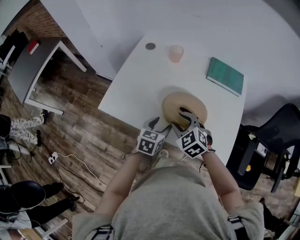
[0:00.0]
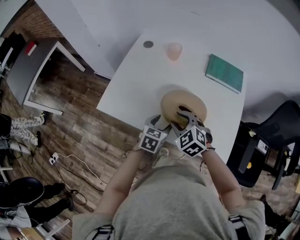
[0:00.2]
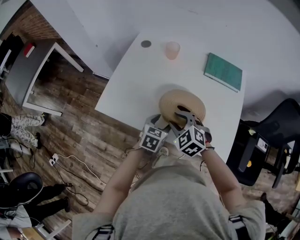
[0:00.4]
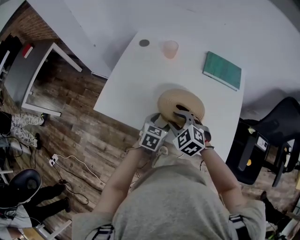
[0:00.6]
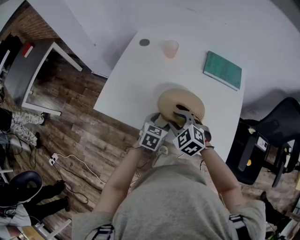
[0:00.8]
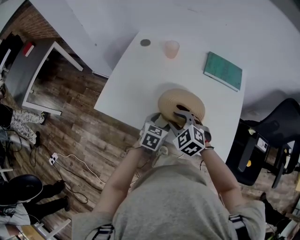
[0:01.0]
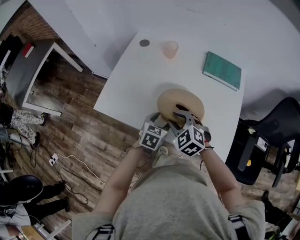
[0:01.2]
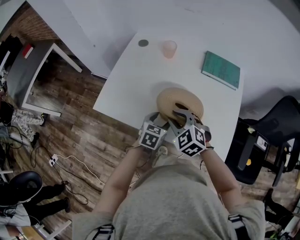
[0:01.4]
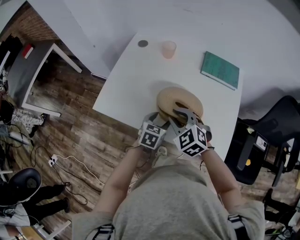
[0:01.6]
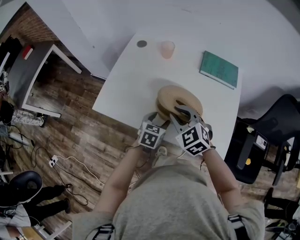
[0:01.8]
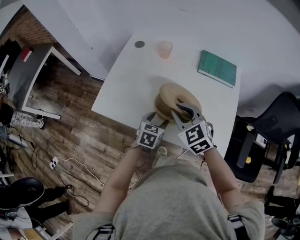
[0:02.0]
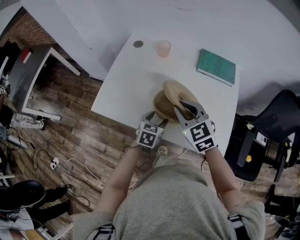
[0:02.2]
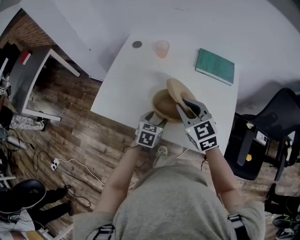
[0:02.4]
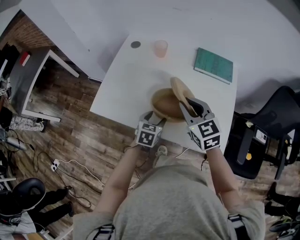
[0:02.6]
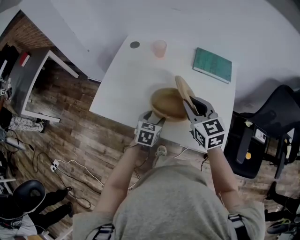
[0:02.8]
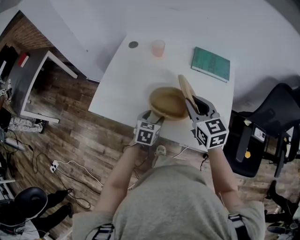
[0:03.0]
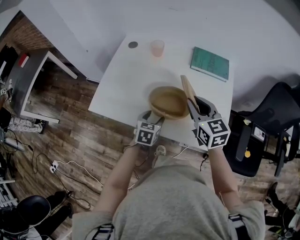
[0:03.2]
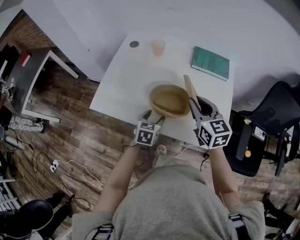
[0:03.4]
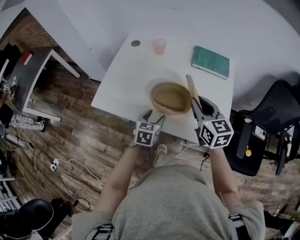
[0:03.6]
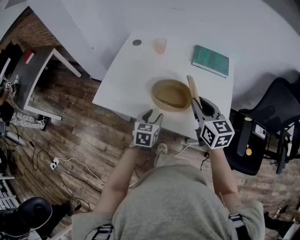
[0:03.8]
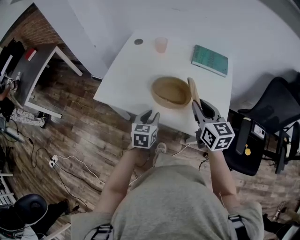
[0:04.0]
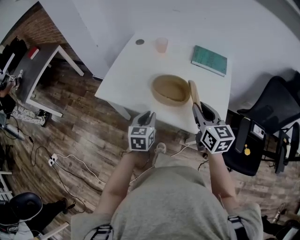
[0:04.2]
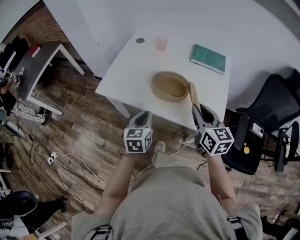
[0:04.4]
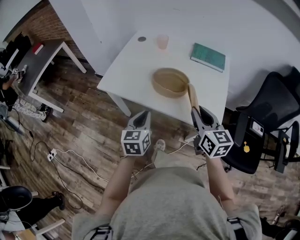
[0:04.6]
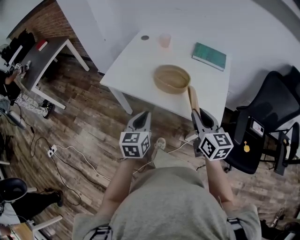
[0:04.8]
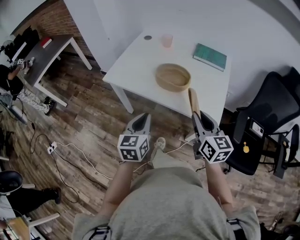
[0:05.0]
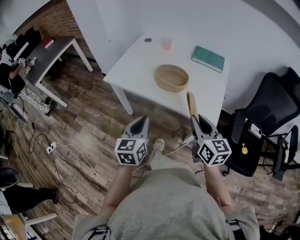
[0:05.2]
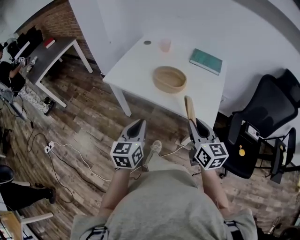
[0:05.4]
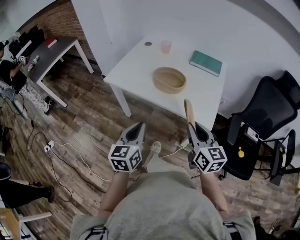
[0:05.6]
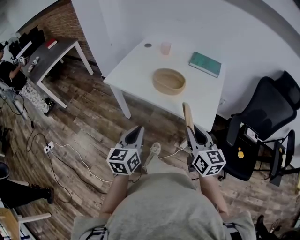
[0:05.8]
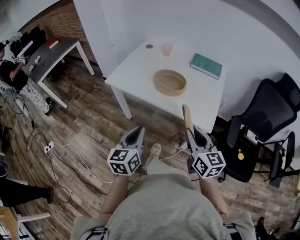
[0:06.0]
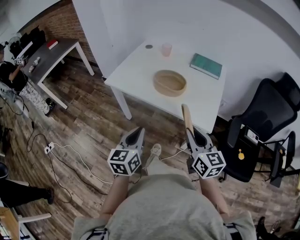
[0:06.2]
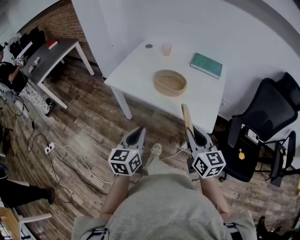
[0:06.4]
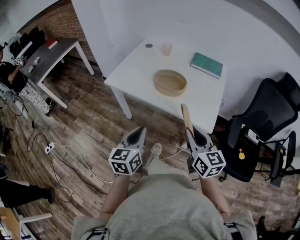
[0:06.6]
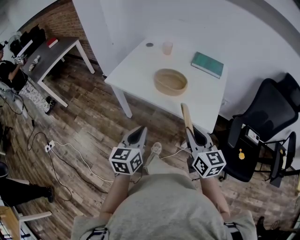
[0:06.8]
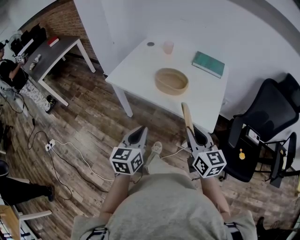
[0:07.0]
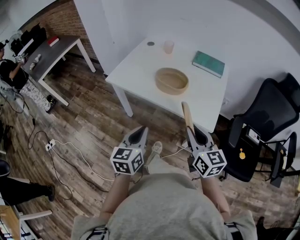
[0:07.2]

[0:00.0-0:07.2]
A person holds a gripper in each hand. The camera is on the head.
0:00.0 to 0:01.4: The grippers stay close to where they were, moving slightly.
0:01.4 to 0:02.8: The right gripper is displaced to the right and upward by about 15 cm, and turns by some 40 degrees.
0:02.8 to 0:04.4: The right gripper moves backward, some 15 cm. Meanwhile the left gripper heads backward and upward, covering some 15 cm, rotates approximately 20 degrees, and closes up.
0:04.4 to 0:05.8: The two grippers go approximately 20 cm backward.
0:05.8 to 0:07.2: Both grippers stay put.

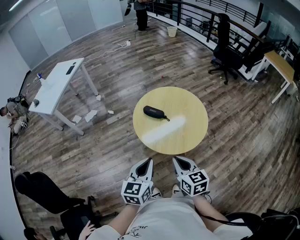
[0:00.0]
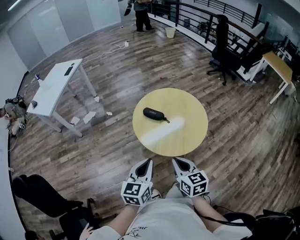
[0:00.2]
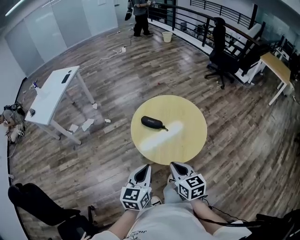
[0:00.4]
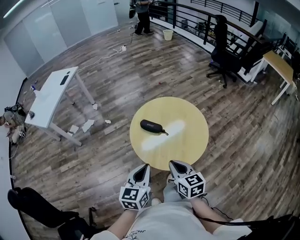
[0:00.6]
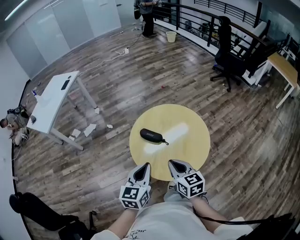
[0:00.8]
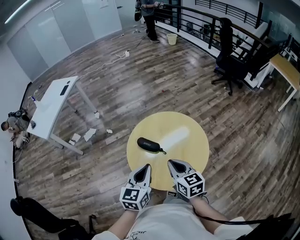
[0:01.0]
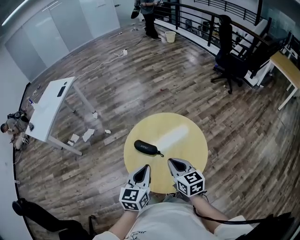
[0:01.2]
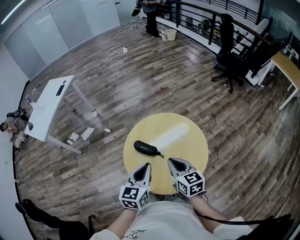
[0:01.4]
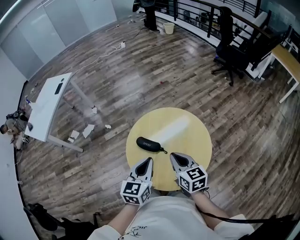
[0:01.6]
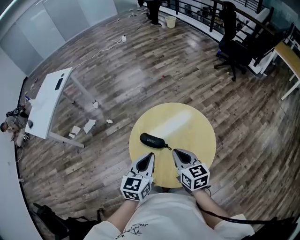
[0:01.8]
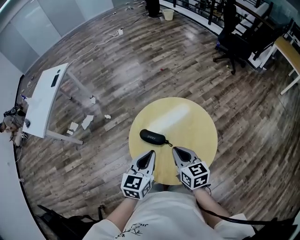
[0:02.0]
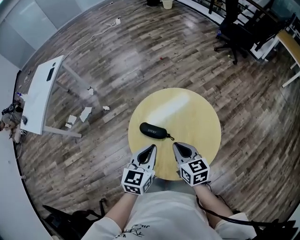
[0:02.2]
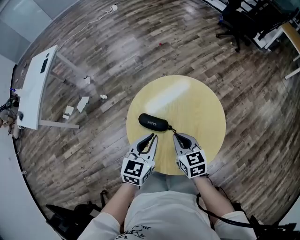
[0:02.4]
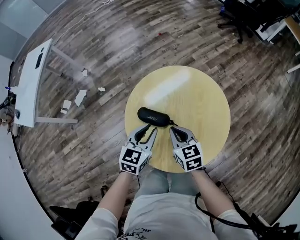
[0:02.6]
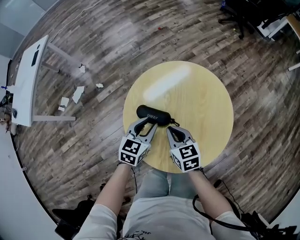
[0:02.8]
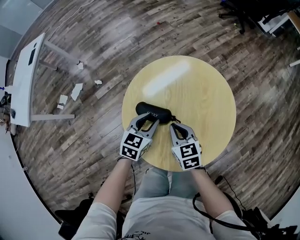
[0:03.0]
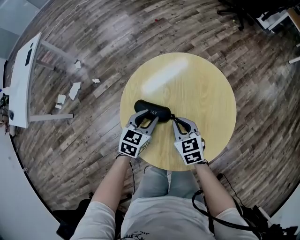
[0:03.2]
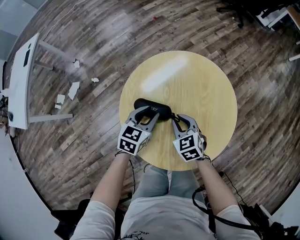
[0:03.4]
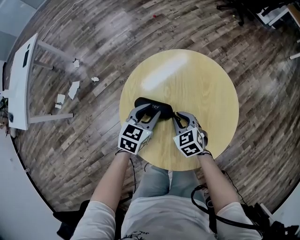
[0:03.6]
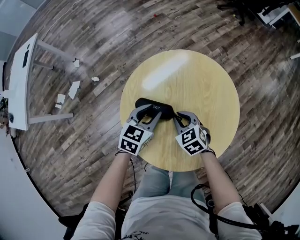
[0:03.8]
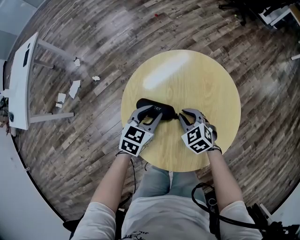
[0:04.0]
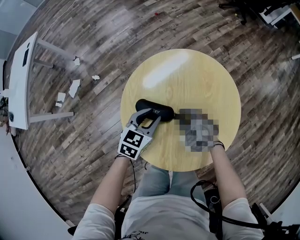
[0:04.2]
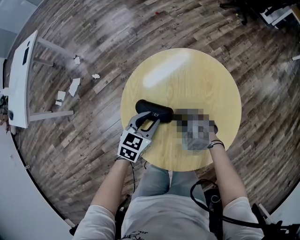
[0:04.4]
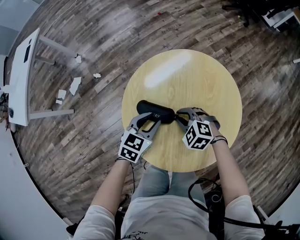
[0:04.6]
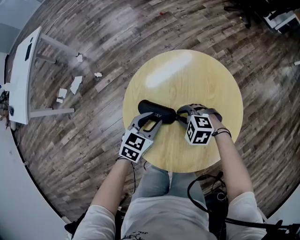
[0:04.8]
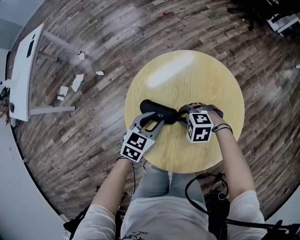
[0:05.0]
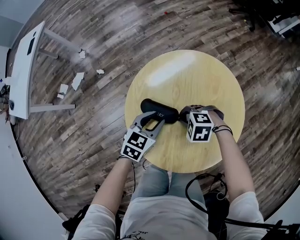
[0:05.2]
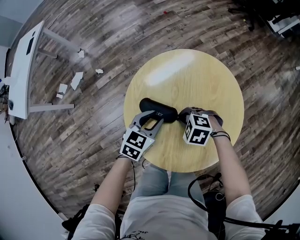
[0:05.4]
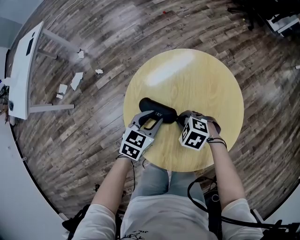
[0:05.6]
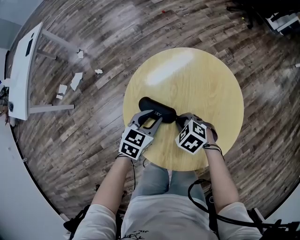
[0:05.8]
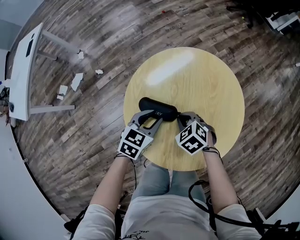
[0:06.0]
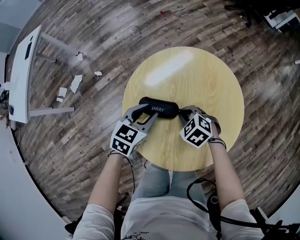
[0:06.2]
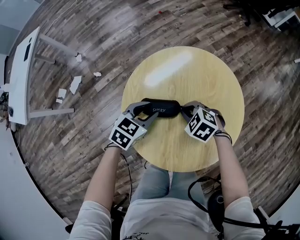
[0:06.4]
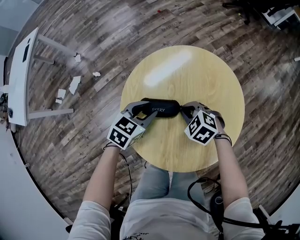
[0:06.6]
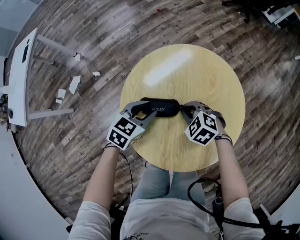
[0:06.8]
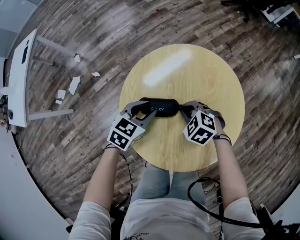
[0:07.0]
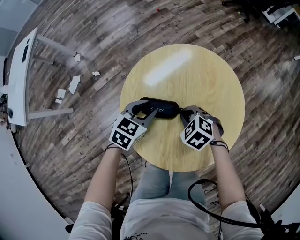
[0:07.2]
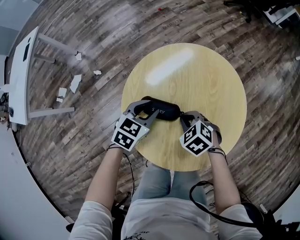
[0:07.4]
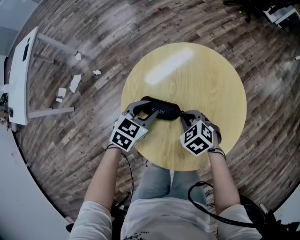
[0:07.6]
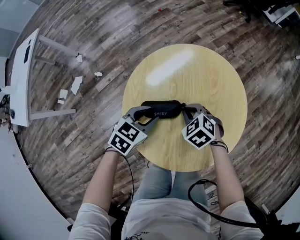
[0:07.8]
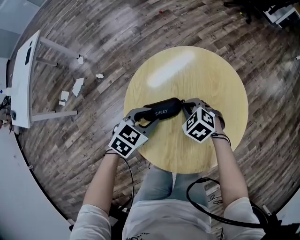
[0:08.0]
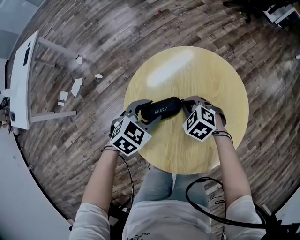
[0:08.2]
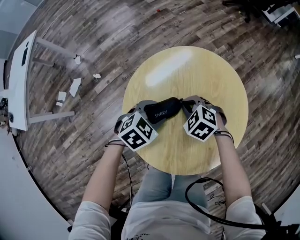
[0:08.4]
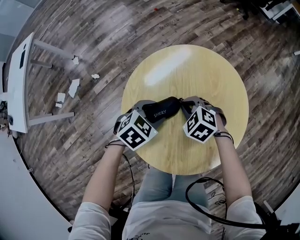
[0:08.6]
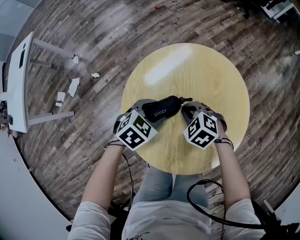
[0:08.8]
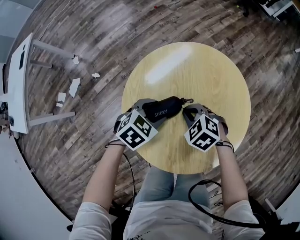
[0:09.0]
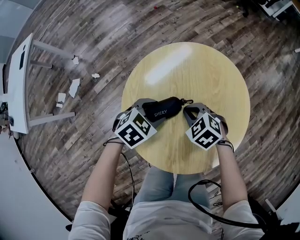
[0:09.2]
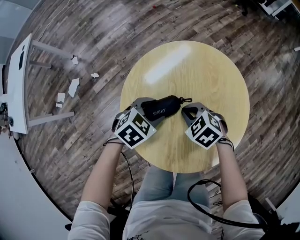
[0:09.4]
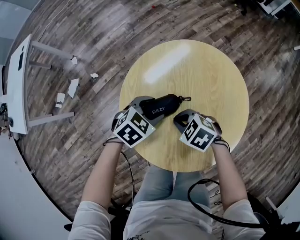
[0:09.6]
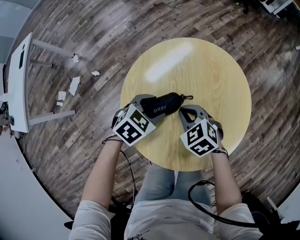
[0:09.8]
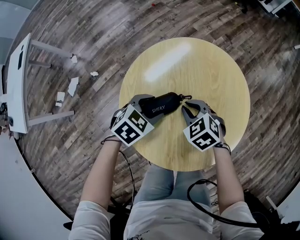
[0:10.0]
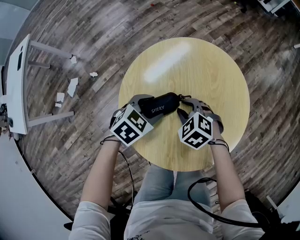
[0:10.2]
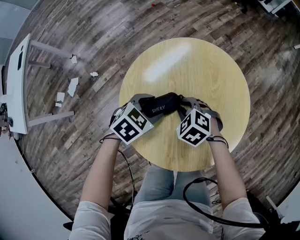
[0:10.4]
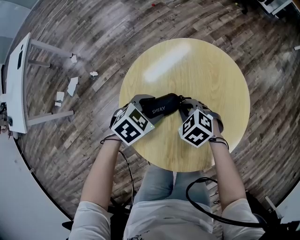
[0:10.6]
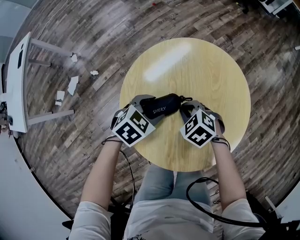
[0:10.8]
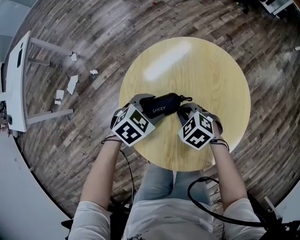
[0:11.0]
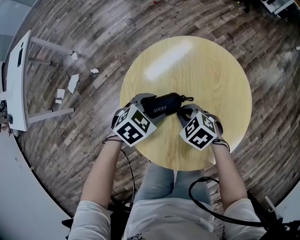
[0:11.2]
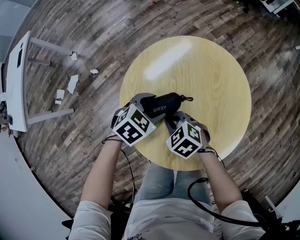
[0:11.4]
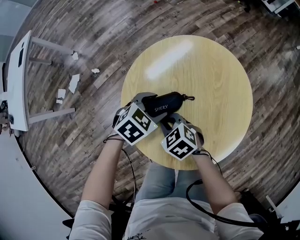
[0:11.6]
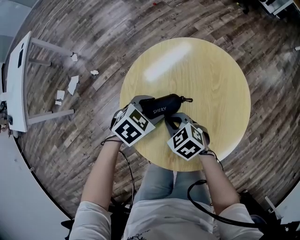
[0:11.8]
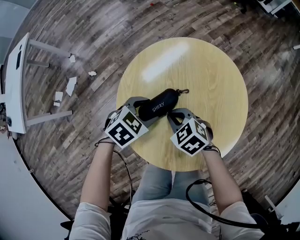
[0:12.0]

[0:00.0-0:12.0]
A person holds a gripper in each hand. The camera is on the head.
0:00.0 to 0:01.6: The grippers both shift forward by about 25 cm.
0:01.6 to 0:03.0: The right gripper goes about 20 cm downward. Meanwhile the left gripper is displaced downward and forward by roughly 25 cm, turns by some 30 degrees, and opens up.
0:03.0 to 0:04.4: The right gripper is displaced downward by about 5 cm, and rolls counterclockwise, seen from behind, by approximately 40 degrees.
0:06.0 to 0:07.6: The grippers stay close to where they were, moving slightly.
0:07.6 to 0:09.0: The left gripper opens its fingers.
0:09.0 to 0:10.4: The grippers make only small movements.

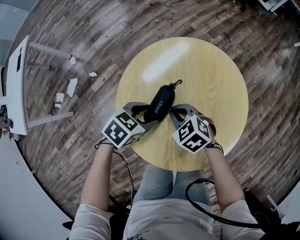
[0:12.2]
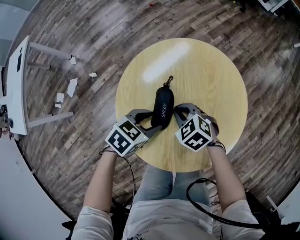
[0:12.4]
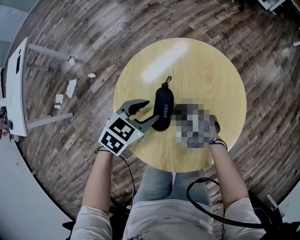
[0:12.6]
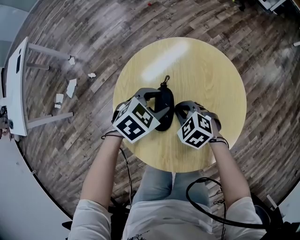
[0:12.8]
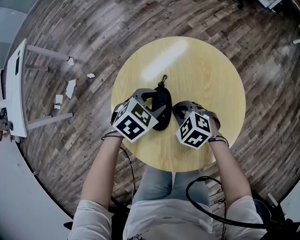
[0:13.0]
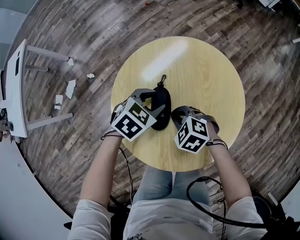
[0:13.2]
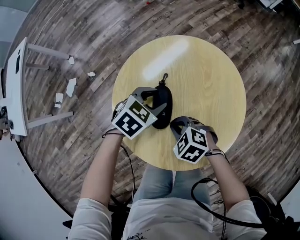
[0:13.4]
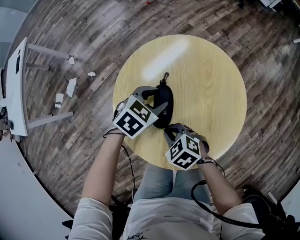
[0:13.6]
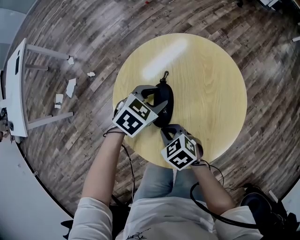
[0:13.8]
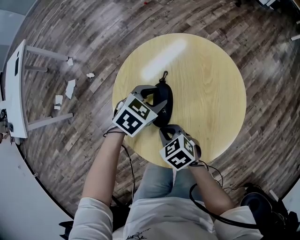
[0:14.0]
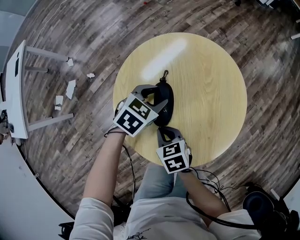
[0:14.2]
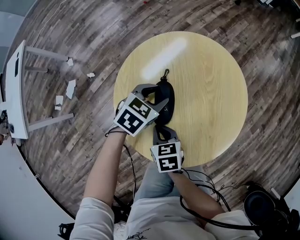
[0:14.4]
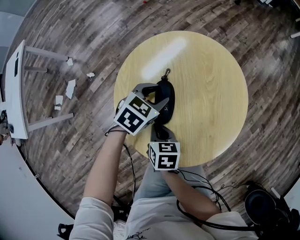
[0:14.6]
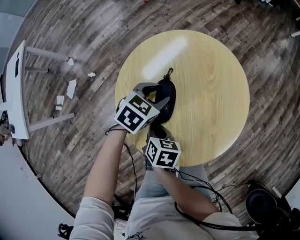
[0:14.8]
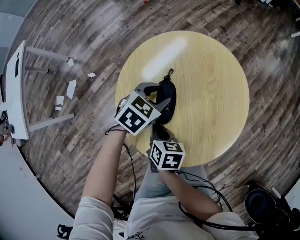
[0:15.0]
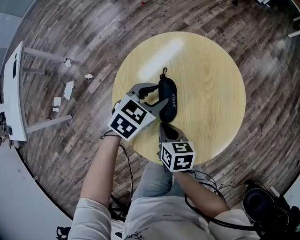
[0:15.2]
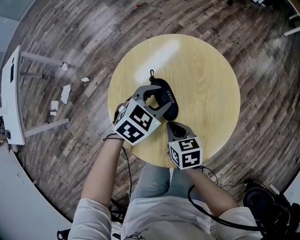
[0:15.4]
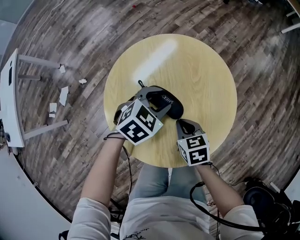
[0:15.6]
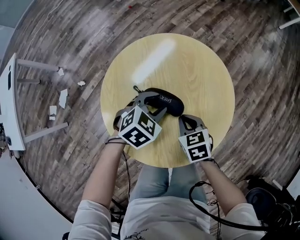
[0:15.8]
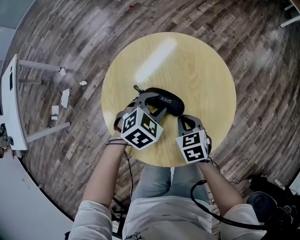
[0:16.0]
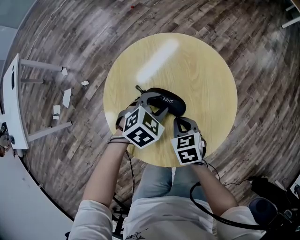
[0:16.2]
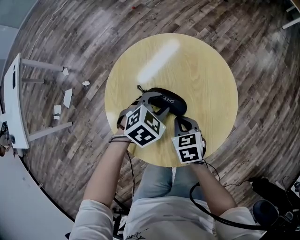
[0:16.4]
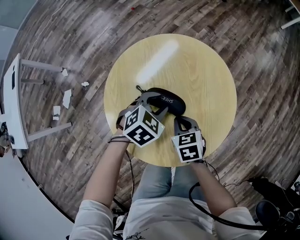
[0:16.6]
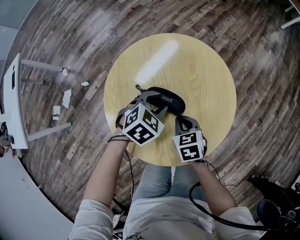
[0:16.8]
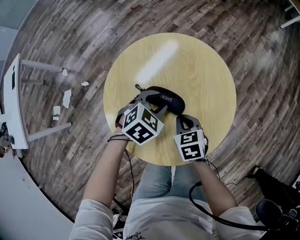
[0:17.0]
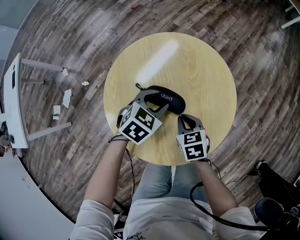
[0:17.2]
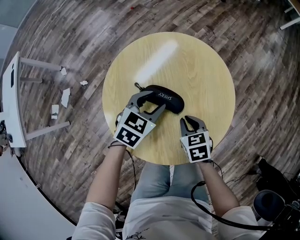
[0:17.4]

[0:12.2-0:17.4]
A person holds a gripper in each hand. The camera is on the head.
0:12.2 to 0:14.0: The left gripper shifts by about 5 cm. Meanwhile the right gripper changes place by some 10 cm.
0:14.0 to 0:15.6: The right gripper shifts by some 10 cm, and turns by approximately 30 degrees. Meanwhile the left gripper ends up roughly 5 cm from where it was.
0:15.6 to 0:17.4: The grippers move only a little.
